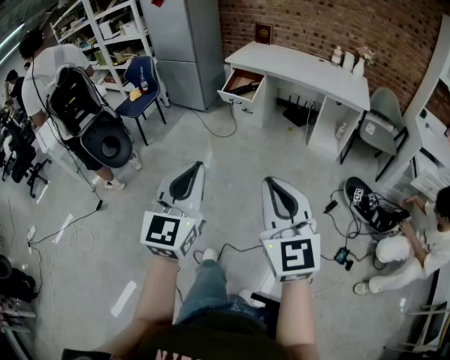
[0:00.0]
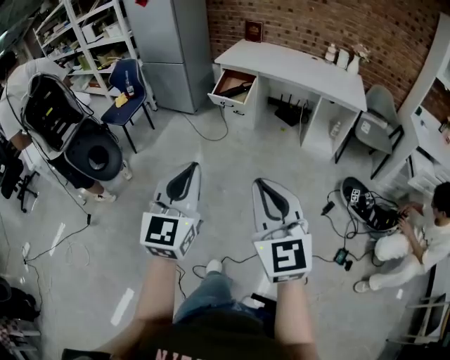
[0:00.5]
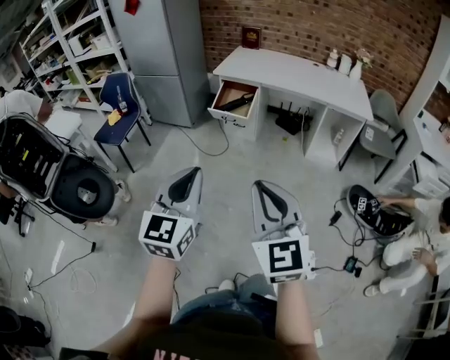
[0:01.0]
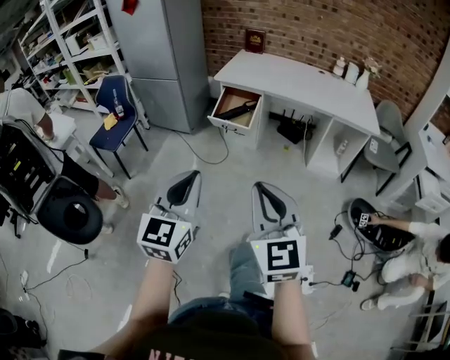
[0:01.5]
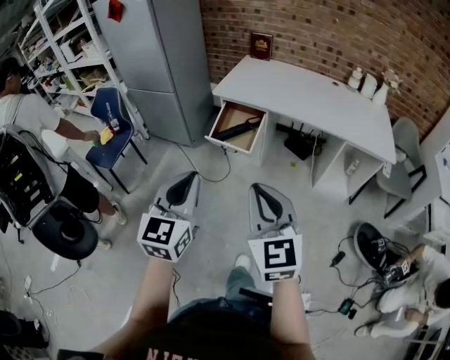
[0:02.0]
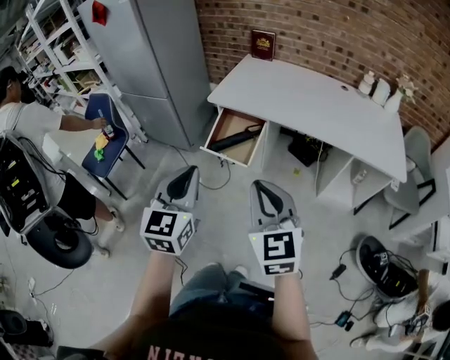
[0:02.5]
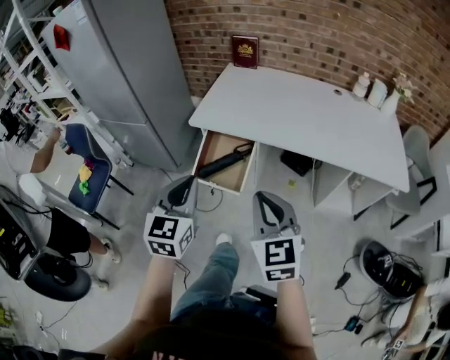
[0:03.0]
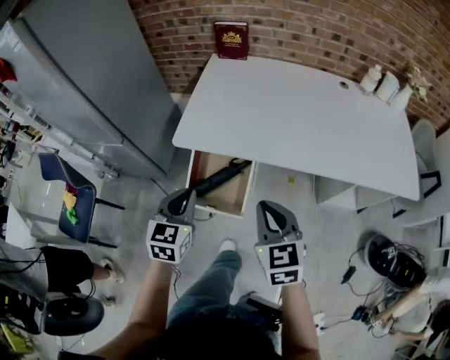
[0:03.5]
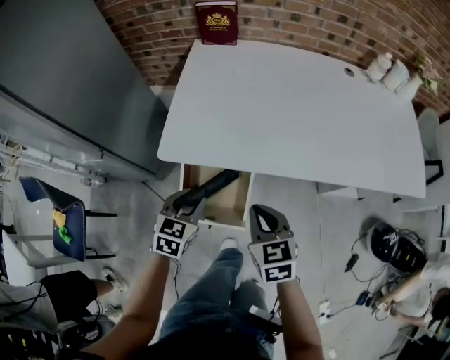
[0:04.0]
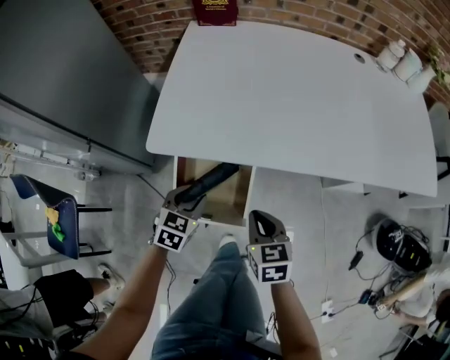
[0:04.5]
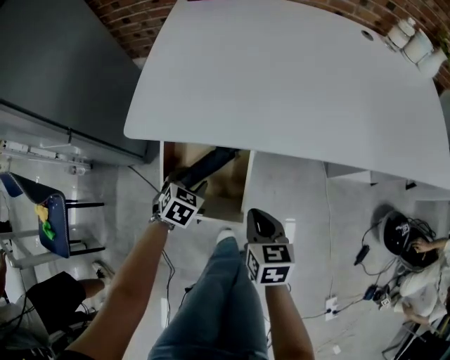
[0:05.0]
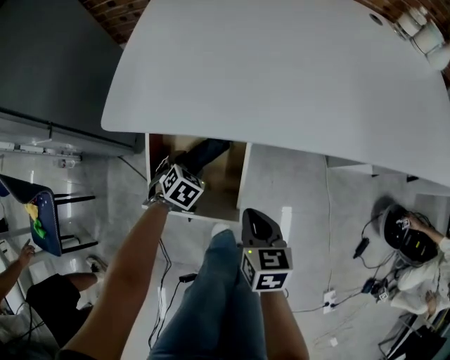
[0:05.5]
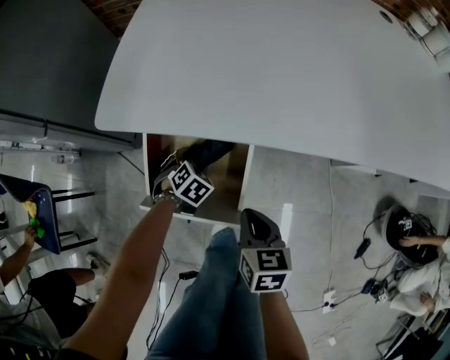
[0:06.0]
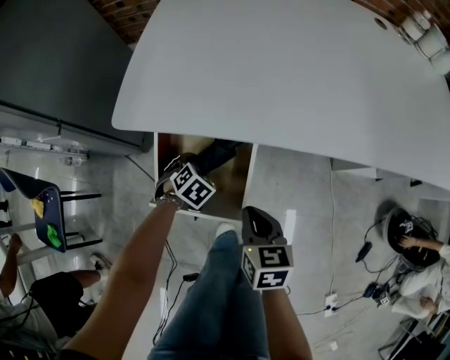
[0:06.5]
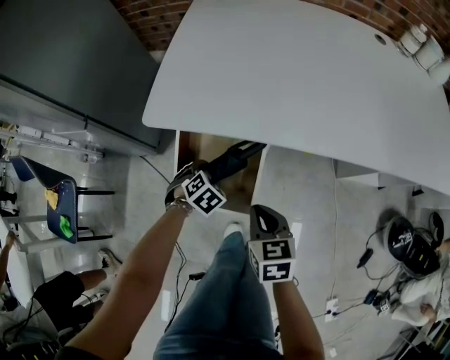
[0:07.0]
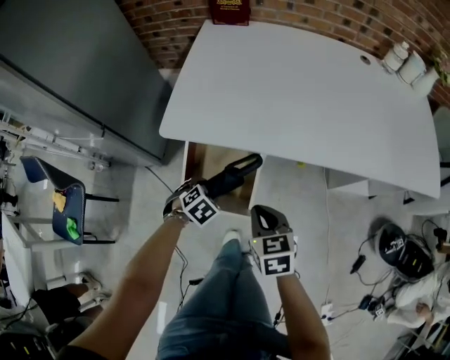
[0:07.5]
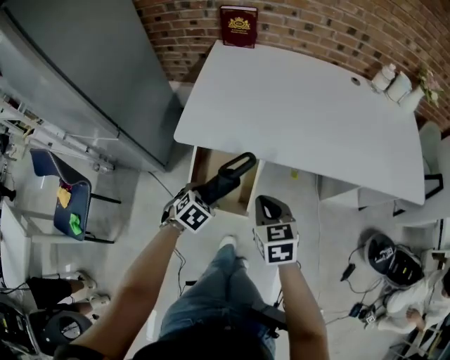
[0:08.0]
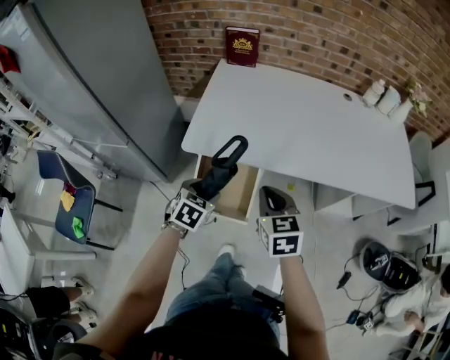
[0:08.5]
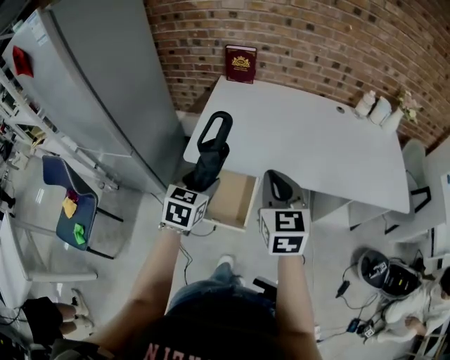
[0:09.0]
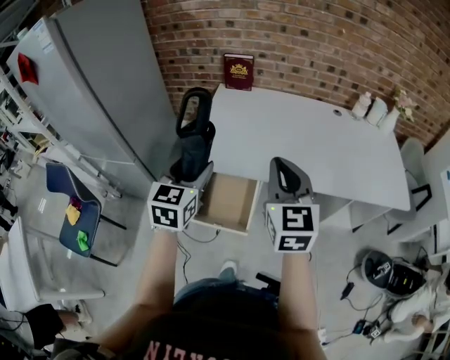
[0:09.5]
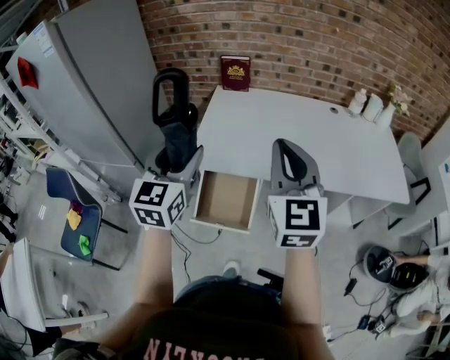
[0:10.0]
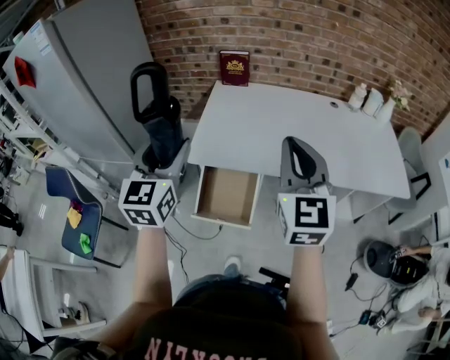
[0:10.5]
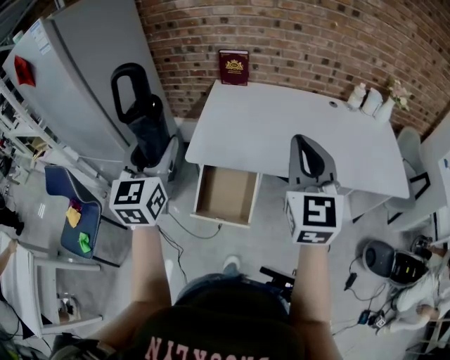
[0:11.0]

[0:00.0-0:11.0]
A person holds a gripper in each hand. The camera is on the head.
0:00.0 to 0:02.0: Both grippers are carried forward, roughly 50 cm.
0:02.0 to 0:03.5: Both grippers are carried forward, about 50 cm. The left gripper changes its angle by some 20 degrees, while the right gripper swivels about 30 degrees.
0:03.5 to 0:05.5: The two grippers go about 40 cm downward. The right gripper changes its angle by approximately 30 degrees. Meanwhile the left gripper points its fingers some 40 degrees further downward, and opens up.
0:05.5 to 0:07.5: The right gripper is displaced upward by about 15 cm. Meanwhile the left gripper shifts some 15 cm upward and backward.
0:07.5 to 0:09.0: Both grippers move upward, approximately 30 cm. The right gripper changes its angle by about 30 degrees. Meanwhile the left gripper tilts its fingers approximately 40 degrees upward.
0:09.0 to 0:11.0: The left gripper goes about 20 cm upward and to the left, and tips its fingers upward by roughly 30 degrees. The right gripper heads upward, covering some 15 cm, and swivels approximately 20 degrees.

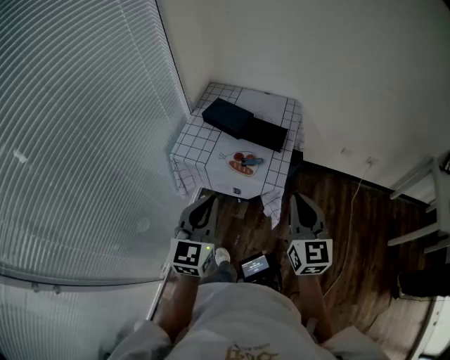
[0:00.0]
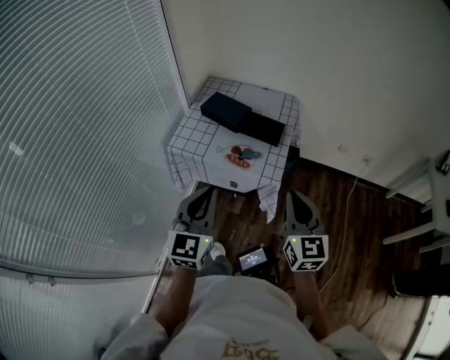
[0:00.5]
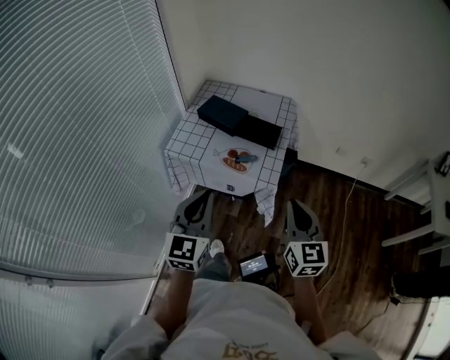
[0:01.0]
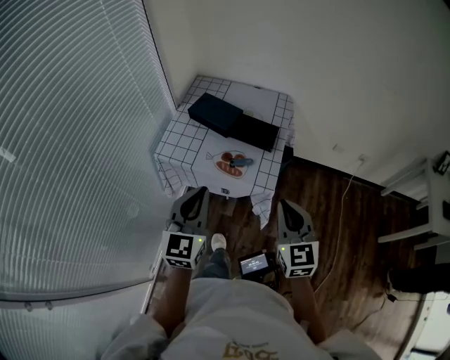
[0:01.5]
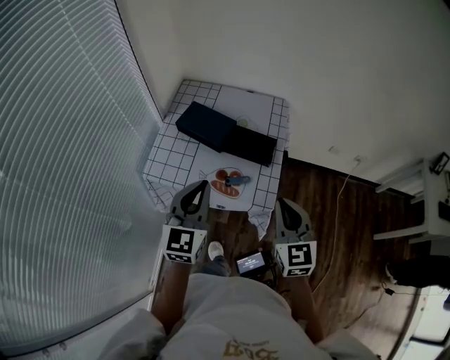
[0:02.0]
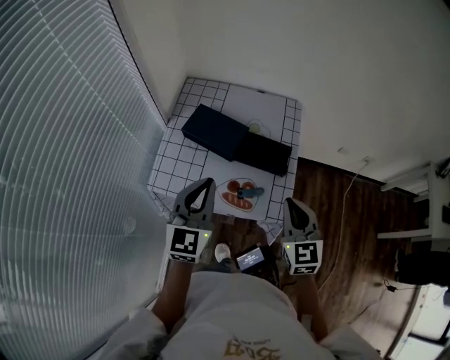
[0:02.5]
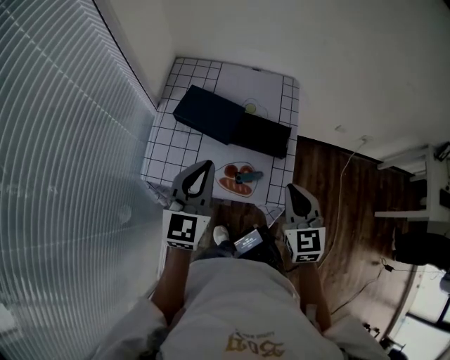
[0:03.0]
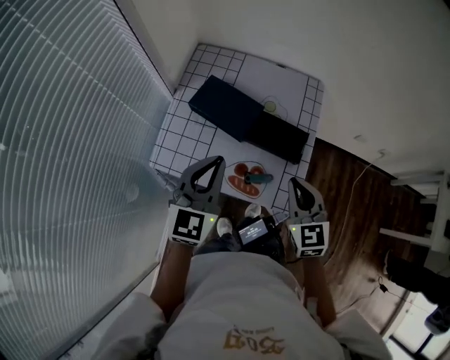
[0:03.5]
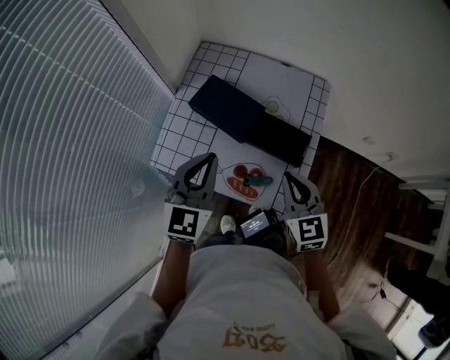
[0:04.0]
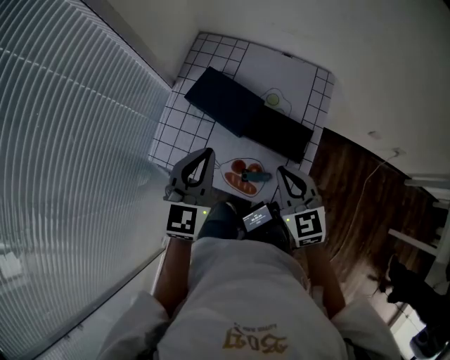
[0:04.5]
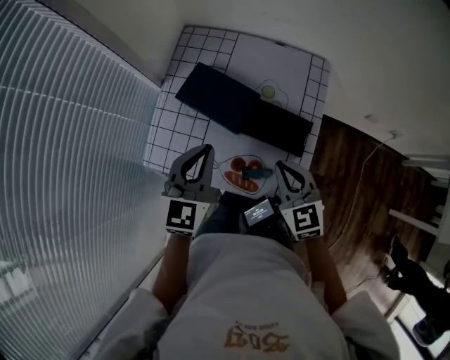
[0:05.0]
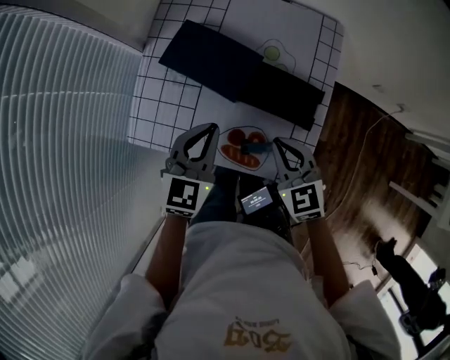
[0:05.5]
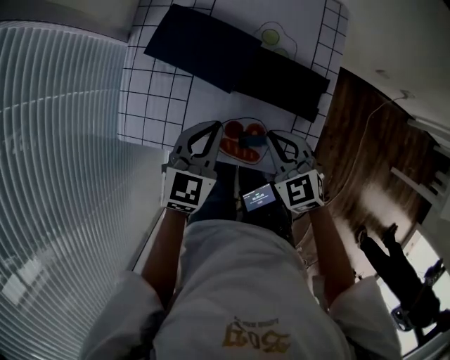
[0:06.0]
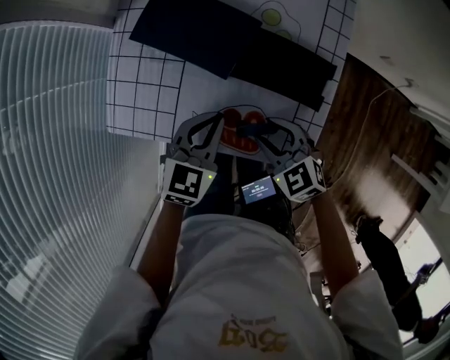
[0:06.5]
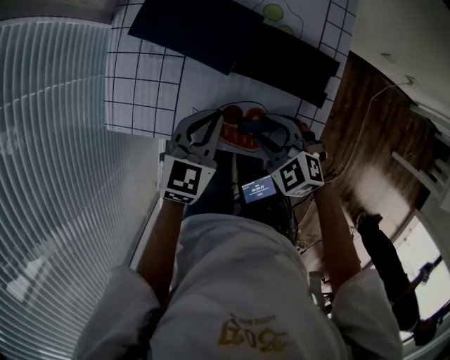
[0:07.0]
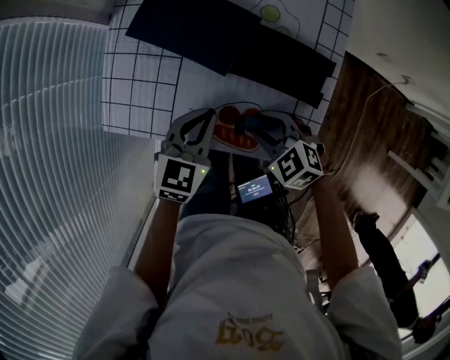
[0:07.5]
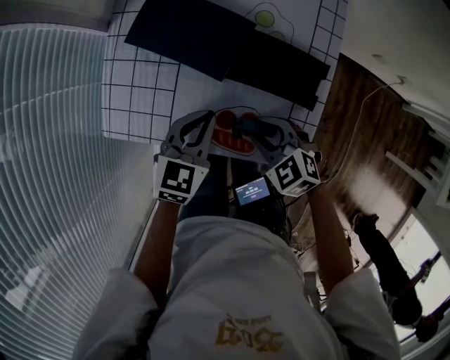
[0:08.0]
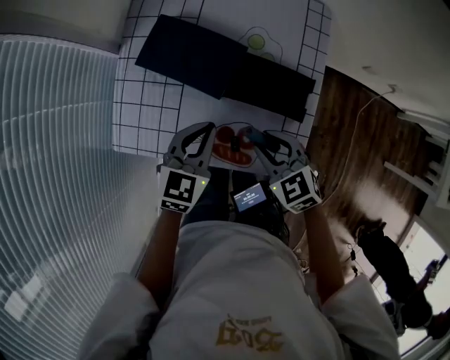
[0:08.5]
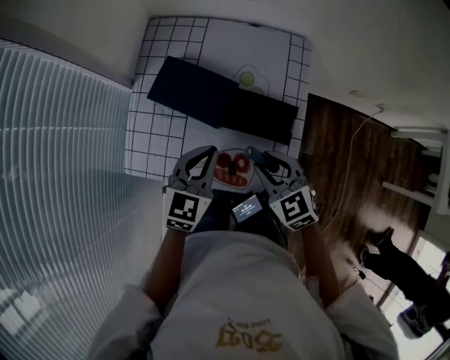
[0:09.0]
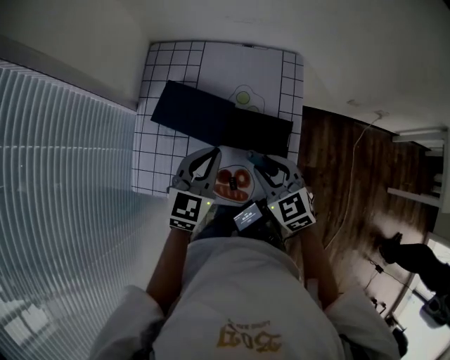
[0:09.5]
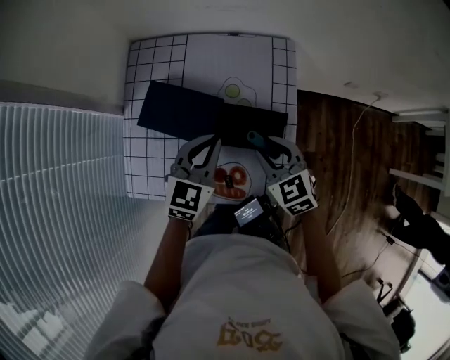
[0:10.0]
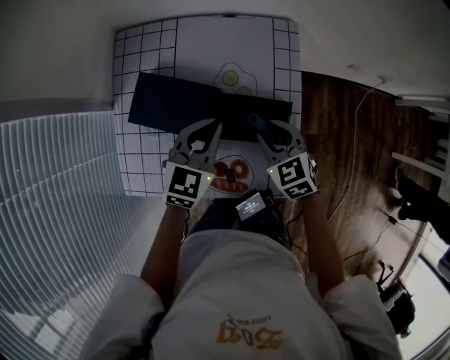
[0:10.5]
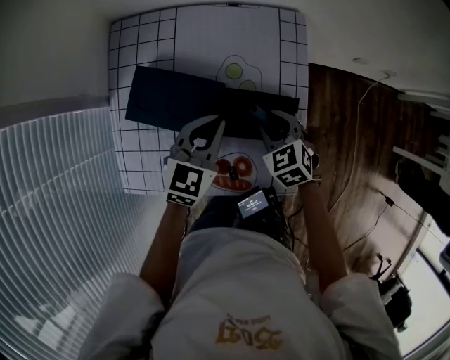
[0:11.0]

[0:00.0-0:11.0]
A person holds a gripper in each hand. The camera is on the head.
0:00.0 to 0:02.0: The two grippers go roughly 15 cm forward.
0:02.0 to 0:03.5: The left gripper moves forward, approximately 10 cm. Meanwhile the right gripper goes approximately 15 cm forward and downward.
0:03.5 to 0:05.5: Both grippers move downward and forward, approximately 15 cm.
0:05.5 to 0:07.5: The two grippers go roughly 10 cm downward. The right gripper rotates approximately 30 degrees, and opens.
0:07.5 to 0:09.0: Both grippers move upward, some 10 cm. The right gripper changes its angle by approximately 30 degrees.
0:09.0 to 0:11.0: The left gripper travels forward by approximately 10 cm. Meanwhile the right gripper moves forward and downward, about 15 cm.

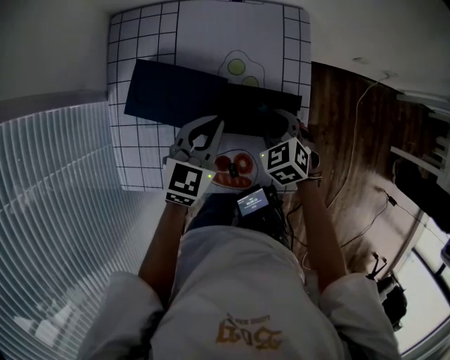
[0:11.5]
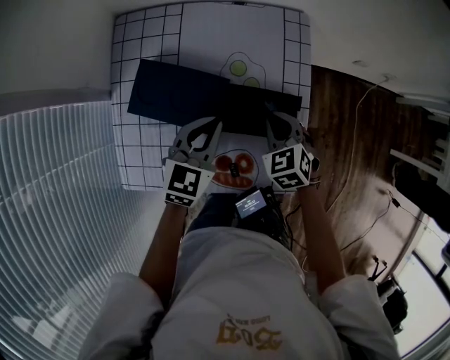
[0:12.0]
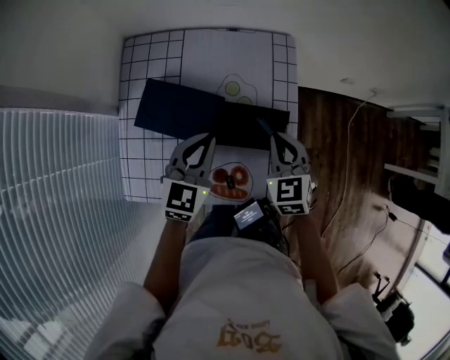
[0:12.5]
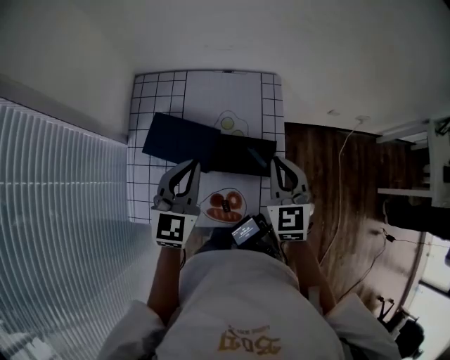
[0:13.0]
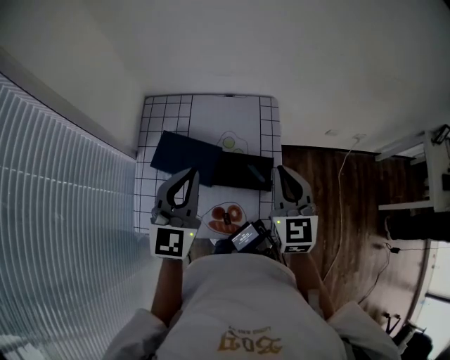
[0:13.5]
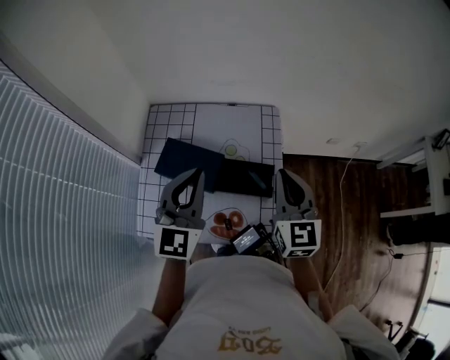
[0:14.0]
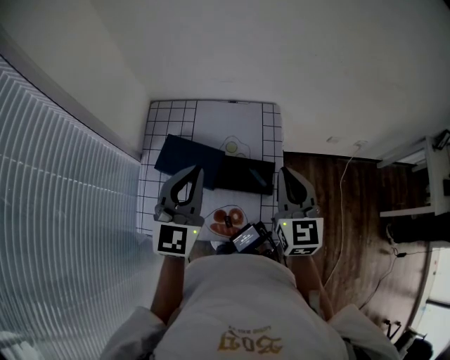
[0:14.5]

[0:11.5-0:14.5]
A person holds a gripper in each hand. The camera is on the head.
0:11.5 to 0:13.0: The grippers both shift upward by approximately 15 cm. The left gripper changes its angle by roughly 20 degrees; the right gripper angles its fingers upward, by roughly 30 degrees, and closes.
0:13.0 to 0:14.5: Both grippers travel together upward, approximately 10 cm.

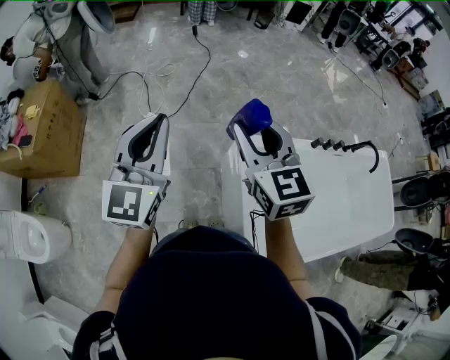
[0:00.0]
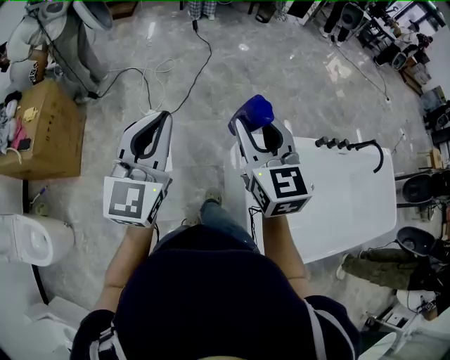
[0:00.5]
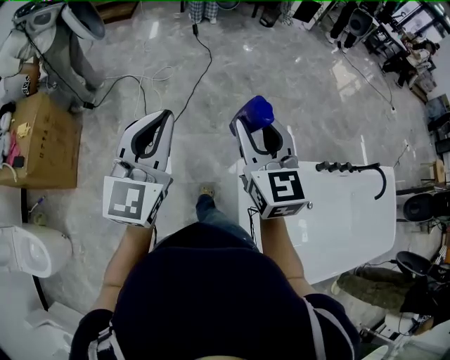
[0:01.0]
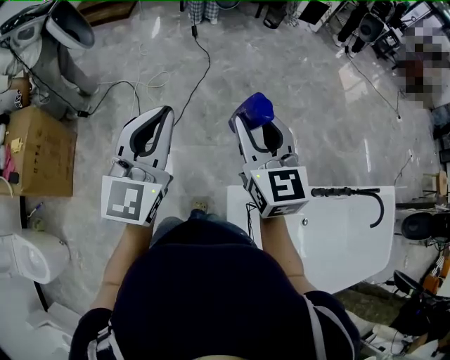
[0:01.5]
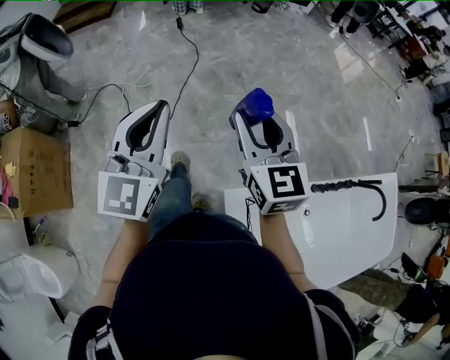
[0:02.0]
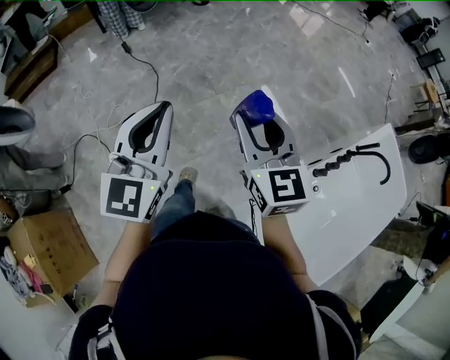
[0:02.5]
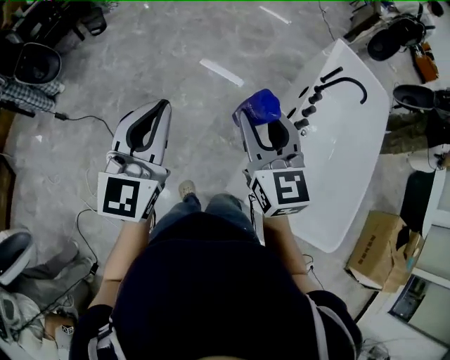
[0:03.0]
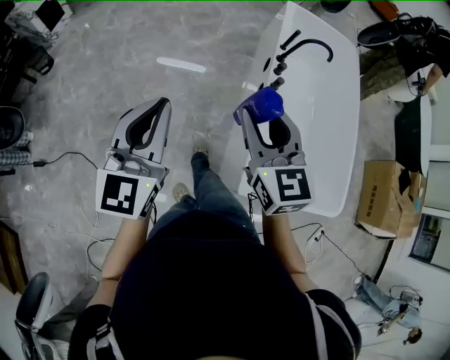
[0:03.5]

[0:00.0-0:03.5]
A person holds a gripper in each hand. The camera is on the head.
0:00.0 to 0:02.0: The pair of grippers is taken forward, about 40 cm.
0:02.0 to 0:03.5: The left gripper moves about 40 cm, and changes its angle by approximately 70 degrees, while the right gripper shifts by roughly 25 cm, and changes its angle by roughly 70 degrees.
